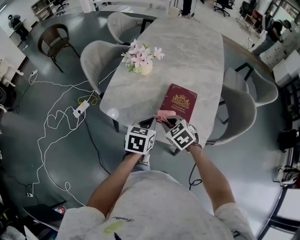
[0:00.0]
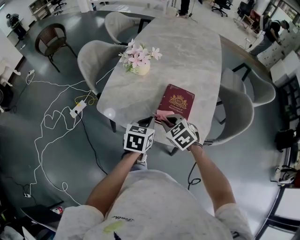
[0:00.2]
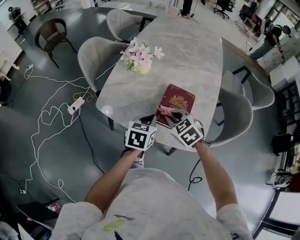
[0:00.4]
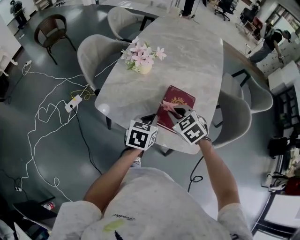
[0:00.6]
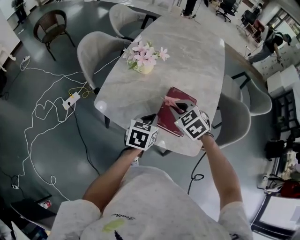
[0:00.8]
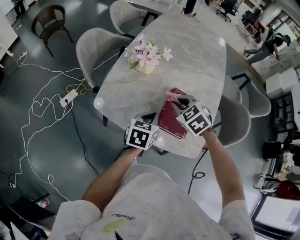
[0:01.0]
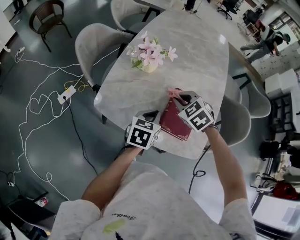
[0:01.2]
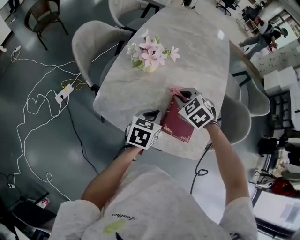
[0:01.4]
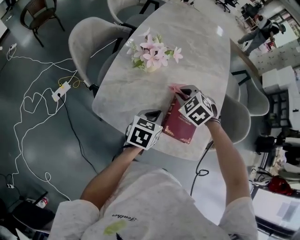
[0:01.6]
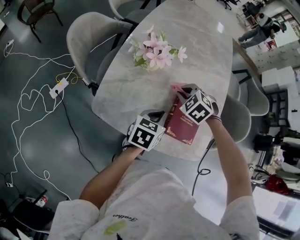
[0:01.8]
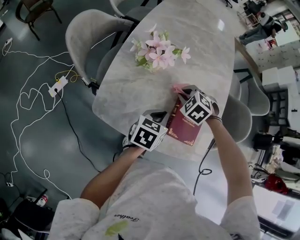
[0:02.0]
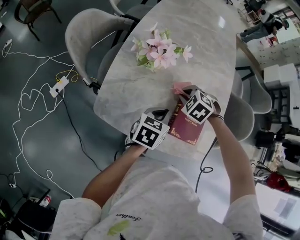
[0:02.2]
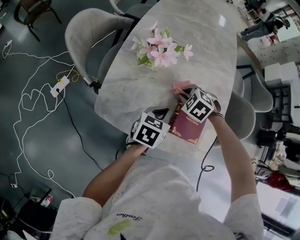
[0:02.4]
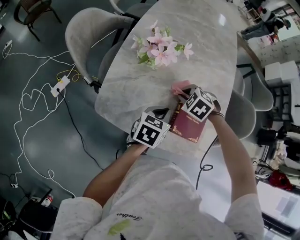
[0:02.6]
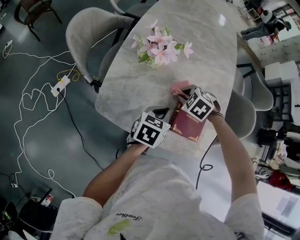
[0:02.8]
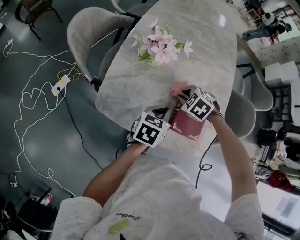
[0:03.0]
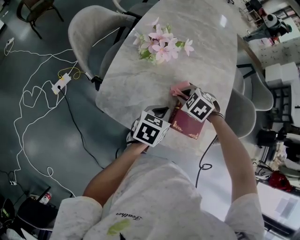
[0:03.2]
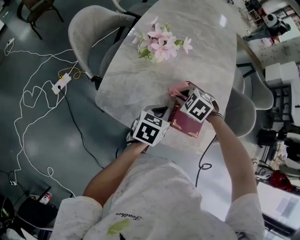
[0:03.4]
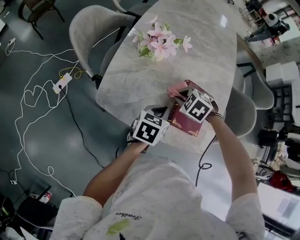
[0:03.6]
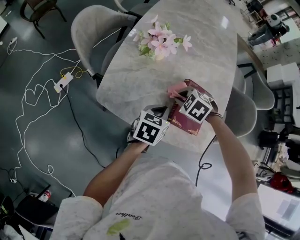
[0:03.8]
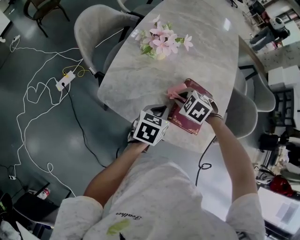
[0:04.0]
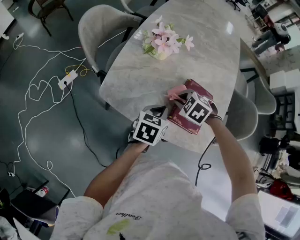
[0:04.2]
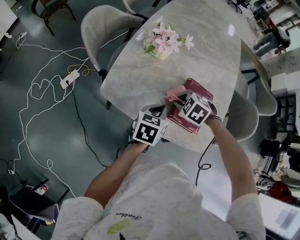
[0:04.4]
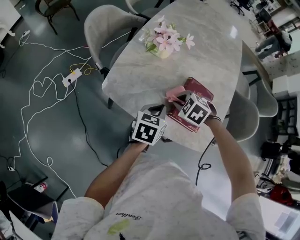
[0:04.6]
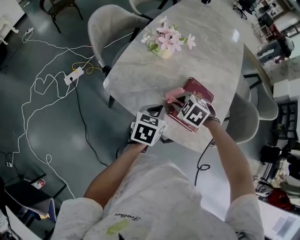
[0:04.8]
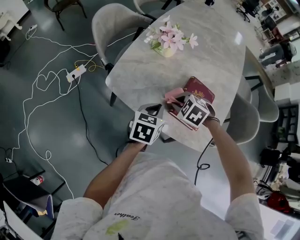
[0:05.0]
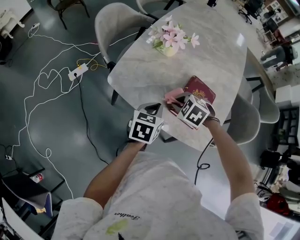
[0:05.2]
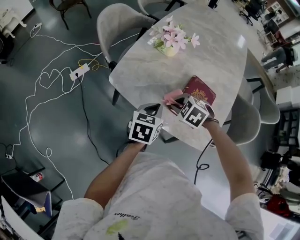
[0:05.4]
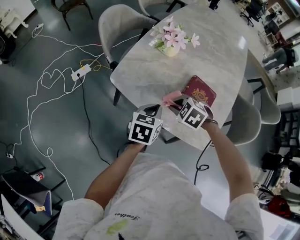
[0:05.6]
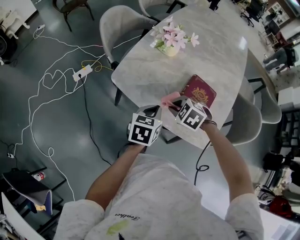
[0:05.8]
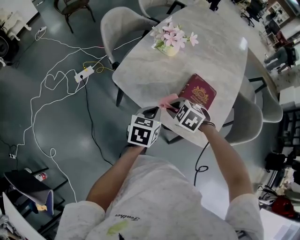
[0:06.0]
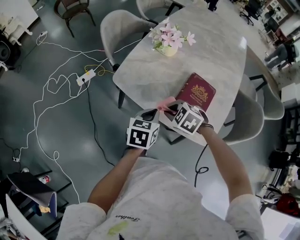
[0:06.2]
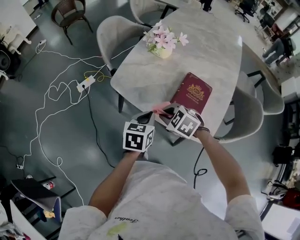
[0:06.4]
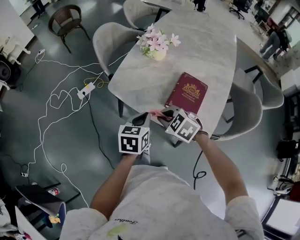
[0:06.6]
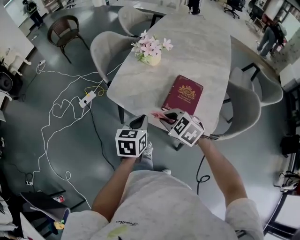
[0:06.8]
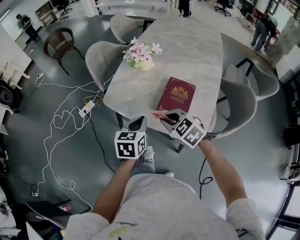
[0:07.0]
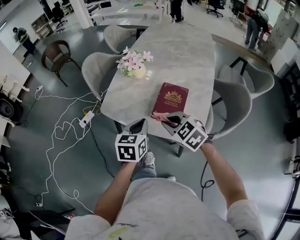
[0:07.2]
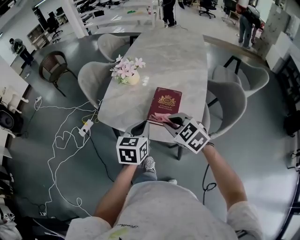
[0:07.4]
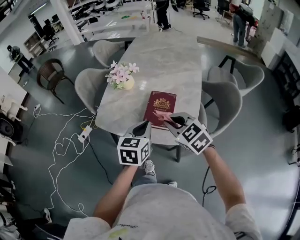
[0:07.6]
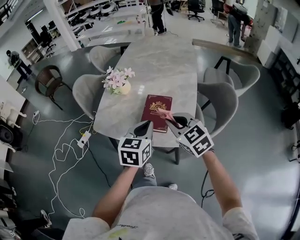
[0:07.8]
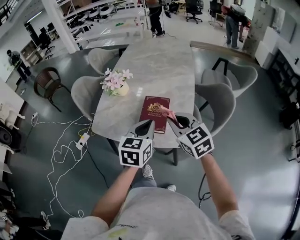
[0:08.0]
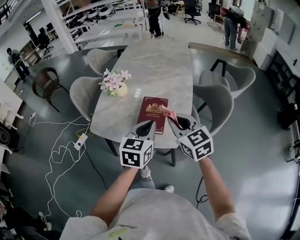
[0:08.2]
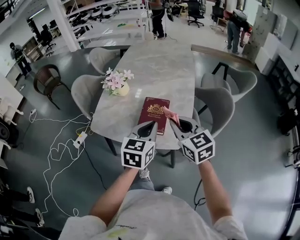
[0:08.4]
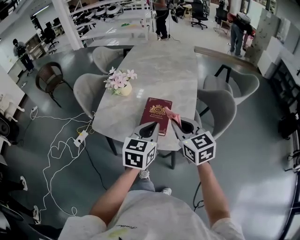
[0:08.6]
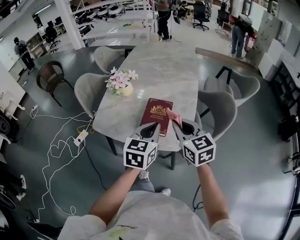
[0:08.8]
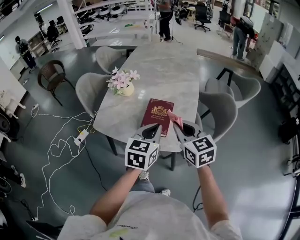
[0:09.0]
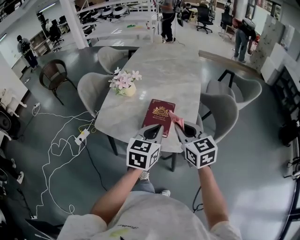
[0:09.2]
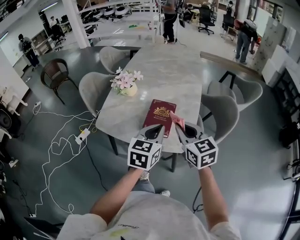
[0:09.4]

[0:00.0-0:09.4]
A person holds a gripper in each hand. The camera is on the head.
0:00.0 to 0:01.6: The right gripper goes roughly 20 cm forward, and changes its angle by approximately 30 degrees, while the left gripper is displaced forward by roughly 10 cm.
0:01.6 to 0:03.2: The right gripper moves downward, some 5 cm.
0:03.2 to 0:04.8: The left gripper changes place by some 5 cm. The right gripper changes place by roughly 10 cm.
0:04.8 to 0:06.2: The left gripper shifts approximately 5 cm backward; the right gripper goes about 10 cm backward and to the left.
0:06.2 to 0:07.8: The left gripper heads upward and to the right, covering about 20 cm, and swivels some 30 degrees. The right gripper is displaced upward, to the right and backward by roughly 25 cm, and points its fingers roughly 40 degrees further upward.
0:07.8 to 0:09.4: The grippers stay close to where they were, moving slightly.

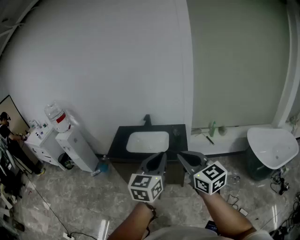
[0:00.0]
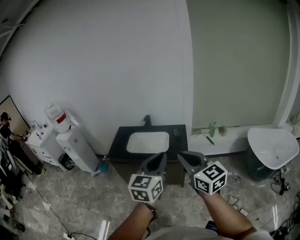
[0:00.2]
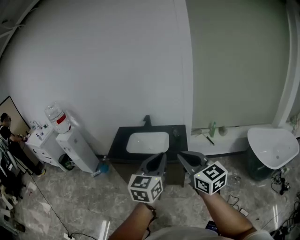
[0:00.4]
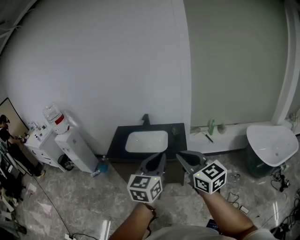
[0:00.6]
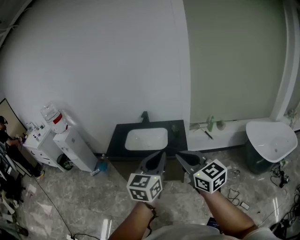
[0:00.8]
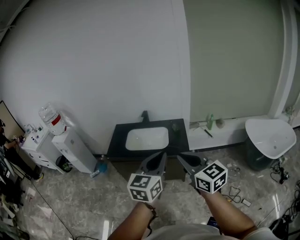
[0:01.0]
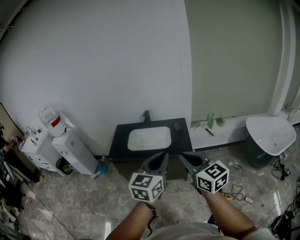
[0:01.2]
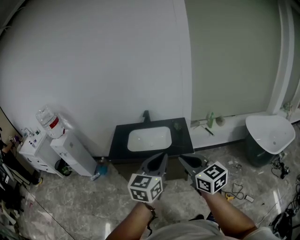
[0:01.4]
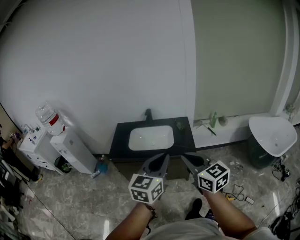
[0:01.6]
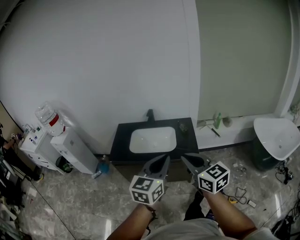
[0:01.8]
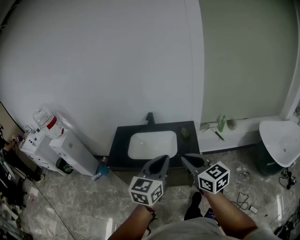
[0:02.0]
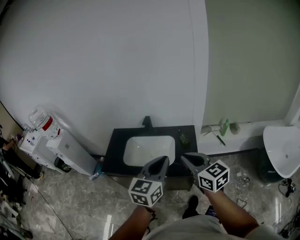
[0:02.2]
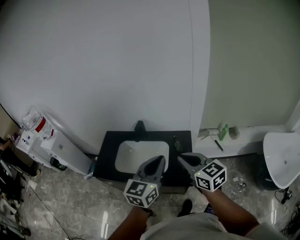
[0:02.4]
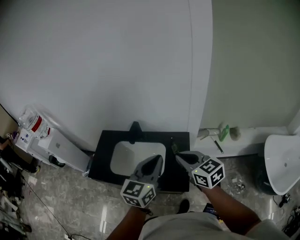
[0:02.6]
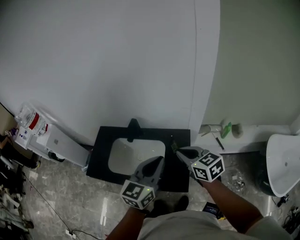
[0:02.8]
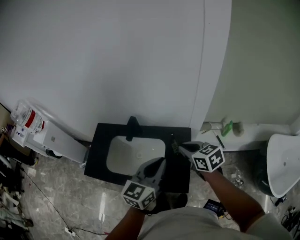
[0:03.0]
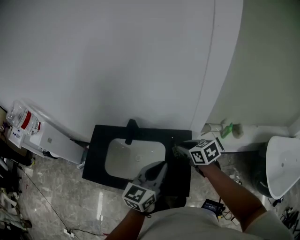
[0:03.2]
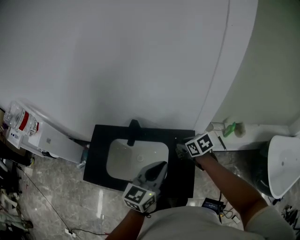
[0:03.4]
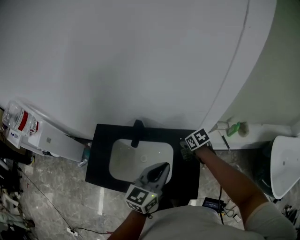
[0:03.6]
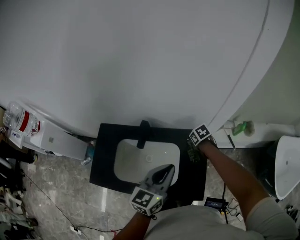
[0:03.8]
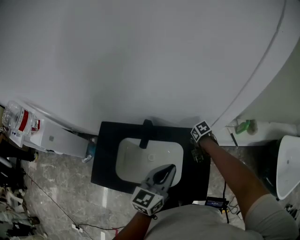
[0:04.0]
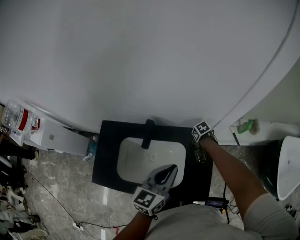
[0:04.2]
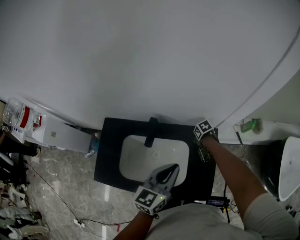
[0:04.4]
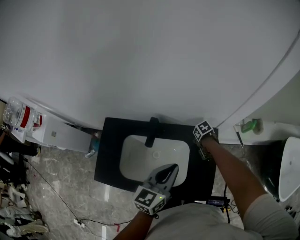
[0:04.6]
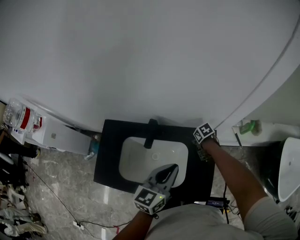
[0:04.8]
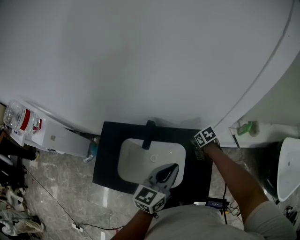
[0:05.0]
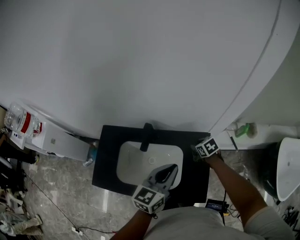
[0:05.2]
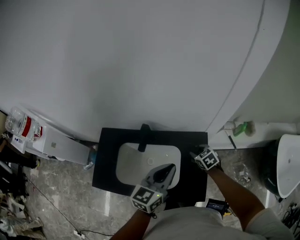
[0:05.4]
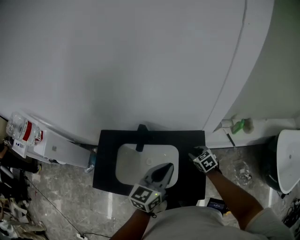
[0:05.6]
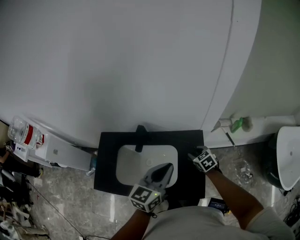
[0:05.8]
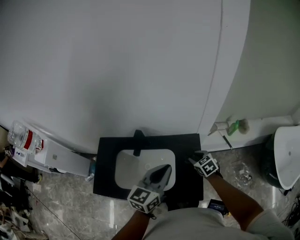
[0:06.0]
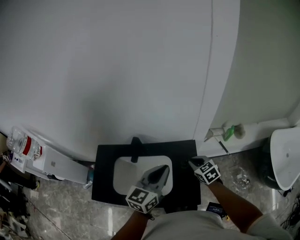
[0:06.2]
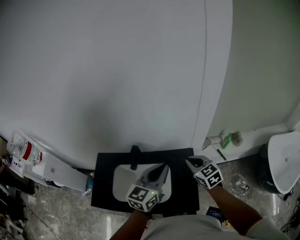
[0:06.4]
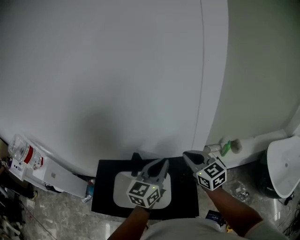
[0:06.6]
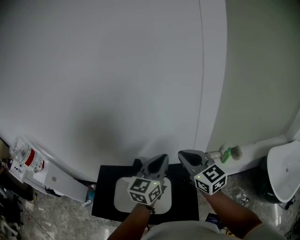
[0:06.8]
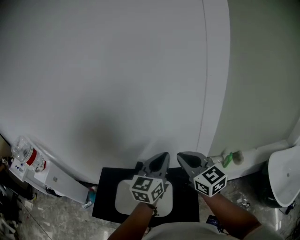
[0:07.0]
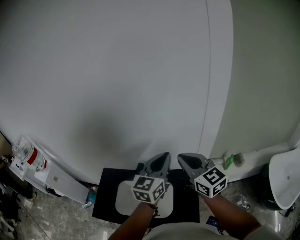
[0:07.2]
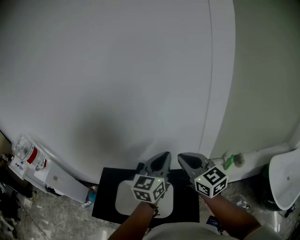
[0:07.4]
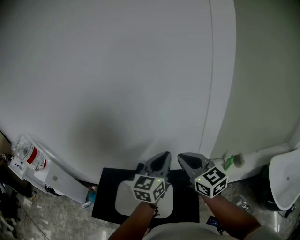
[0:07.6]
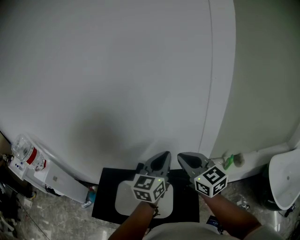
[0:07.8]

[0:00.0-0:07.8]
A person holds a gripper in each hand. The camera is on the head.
0:00.0 to 0:01.6: The left gripper heads to the left and forward, covering some 10 cm. The right gripper moves to the left, downward and forward, roughly 10 cm.
0:01.6 to 0:03.2: Both grippers are carried forward, approximately 60 cm. The right gripper tips its fingers downward by roughly 30 degrees.
0:03.2 to 0:04.6: The left gripper shifts by approximately 15 cm. Meanwhile the right gripper goes some 30 cm downward, and angles its fingers downward, by about 30 degrees.
0:04.6 to 0:06.2: The left gripper changes place by roughly 10 cm, while the right gripper shifts some 20 cm upward, and tips its fingers upward by approximately 30 degrees.
0:06.2 to 0:07.8: The left gripper is displaced upward and forward by approximately 15 cm. Meanwhile the right gripper travels upward by roughly 35 cm, and angles its fingers upward, by roughly 40 degrees.

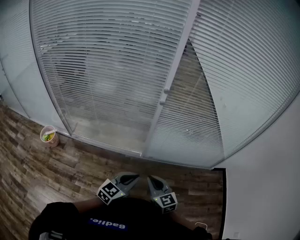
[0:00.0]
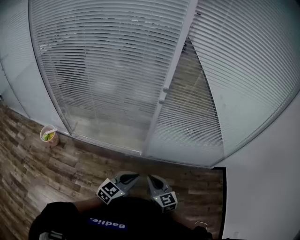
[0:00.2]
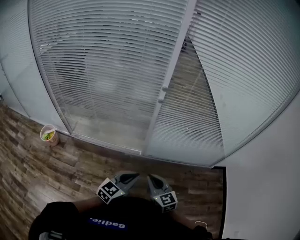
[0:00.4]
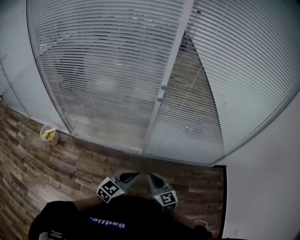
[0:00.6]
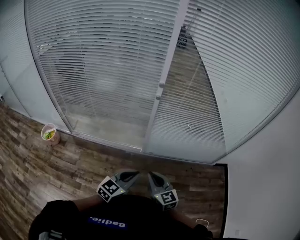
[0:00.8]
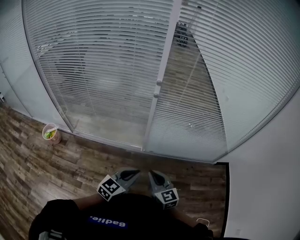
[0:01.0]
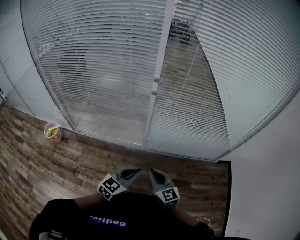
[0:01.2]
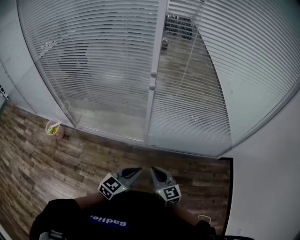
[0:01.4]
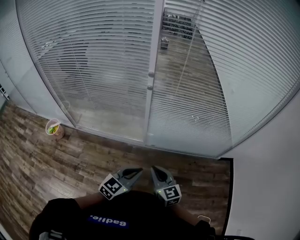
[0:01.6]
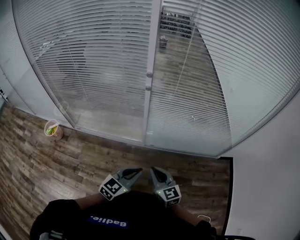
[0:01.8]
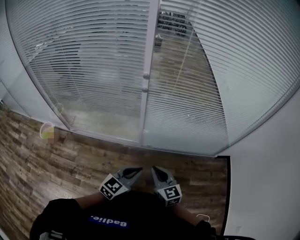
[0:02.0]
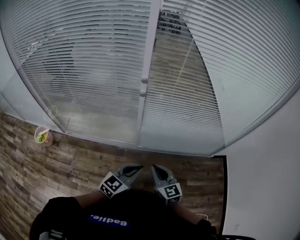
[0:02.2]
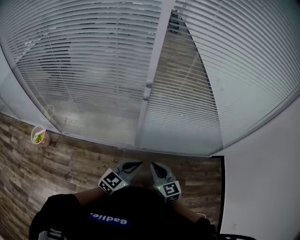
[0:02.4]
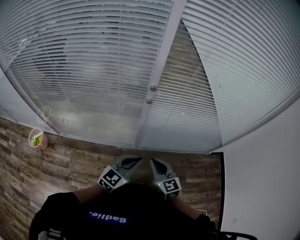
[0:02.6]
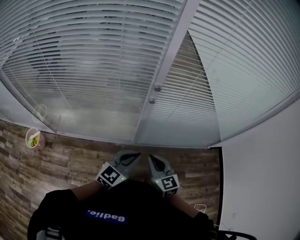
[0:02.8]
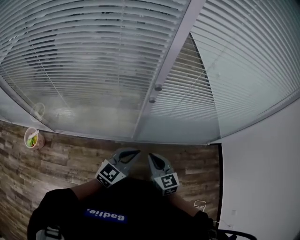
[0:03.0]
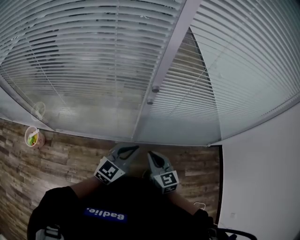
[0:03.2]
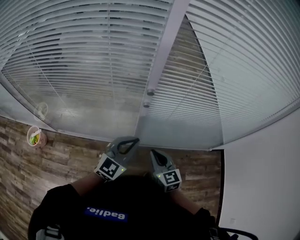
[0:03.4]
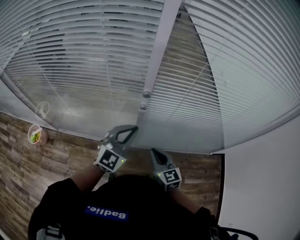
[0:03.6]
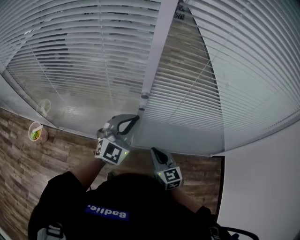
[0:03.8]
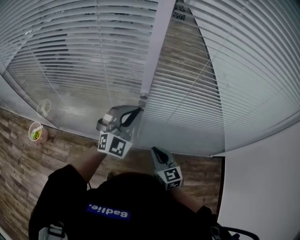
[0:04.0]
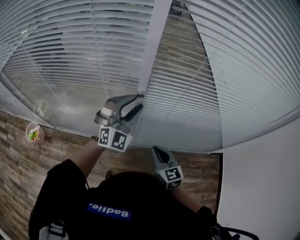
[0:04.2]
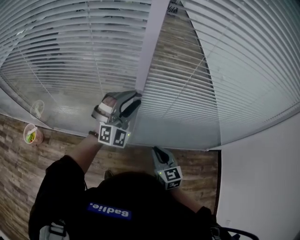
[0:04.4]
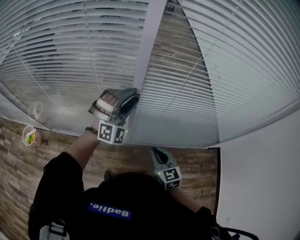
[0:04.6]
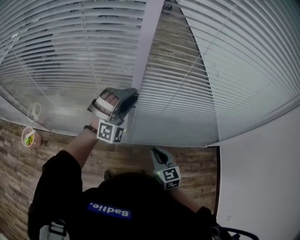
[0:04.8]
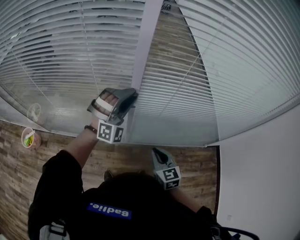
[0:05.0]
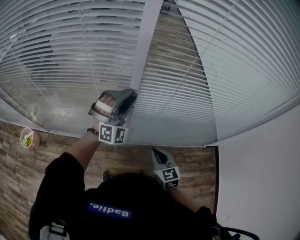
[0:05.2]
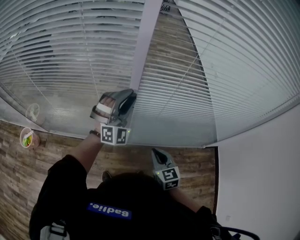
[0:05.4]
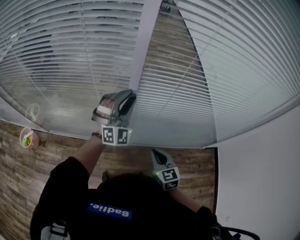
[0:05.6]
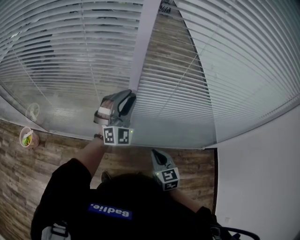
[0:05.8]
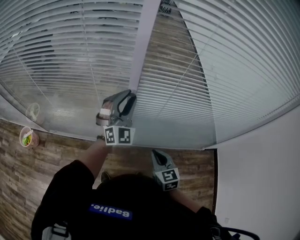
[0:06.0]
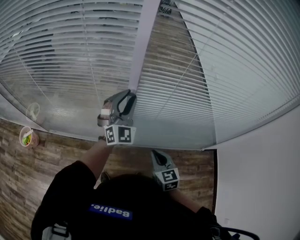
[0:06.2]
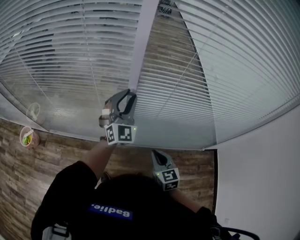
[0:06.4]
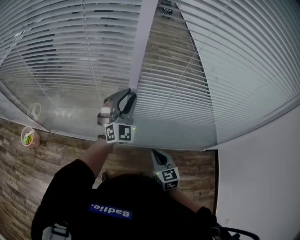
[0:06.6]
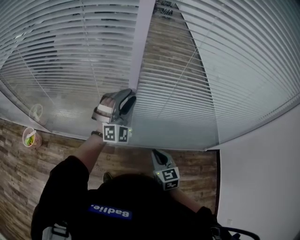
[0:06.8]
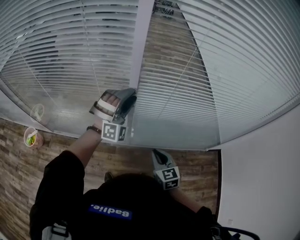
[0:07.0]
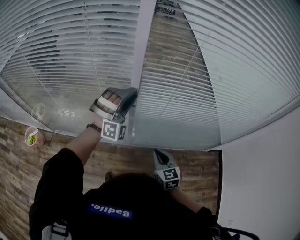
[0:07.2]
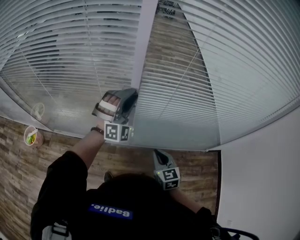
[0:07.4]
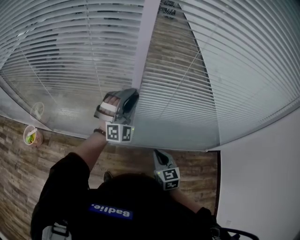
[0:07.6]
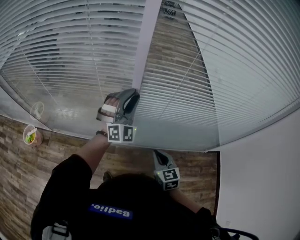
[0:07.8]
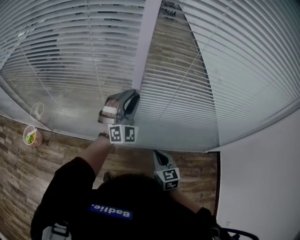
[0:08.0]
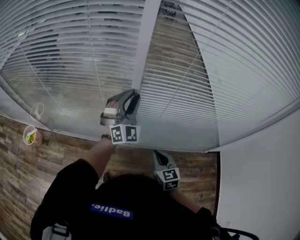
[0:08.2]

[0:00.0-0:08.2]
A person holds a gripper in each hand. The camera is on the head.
0:00.0 to 0:01.6: The two grippers go about 10 cm to the right.
0:01.6 to 0:03.2: Both grippers travel together forward and to the left, roughly 20 cm.
0:03.2 to 0:05.0: The right gripper moves to the right, approximately 5 cm, while the left gripper moves forward and upward, some 20 cm, rotates around the line of its fingers by about 70 degrees, clockwise from behind, and opens.
0:05.0 to 0:06.6: The left gripper rotates roughly 40 degrees.
